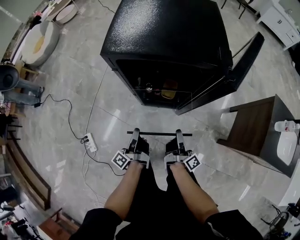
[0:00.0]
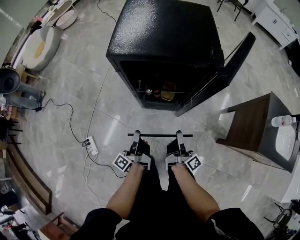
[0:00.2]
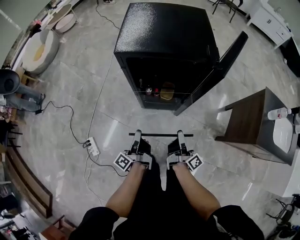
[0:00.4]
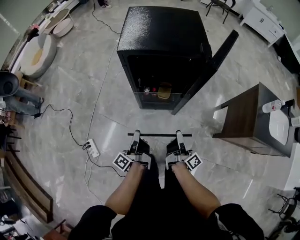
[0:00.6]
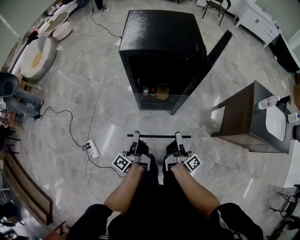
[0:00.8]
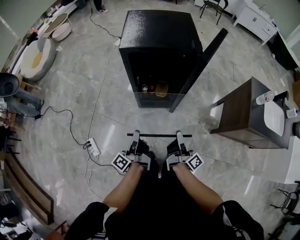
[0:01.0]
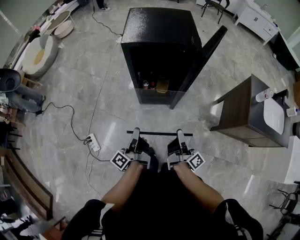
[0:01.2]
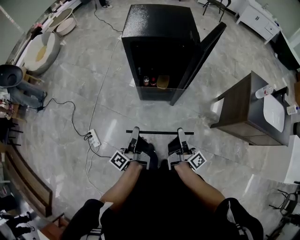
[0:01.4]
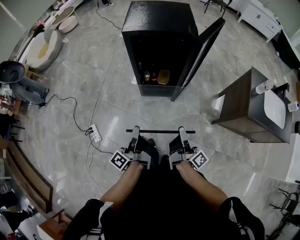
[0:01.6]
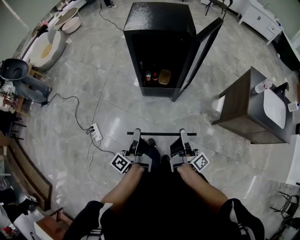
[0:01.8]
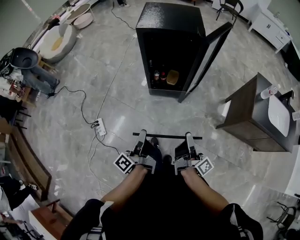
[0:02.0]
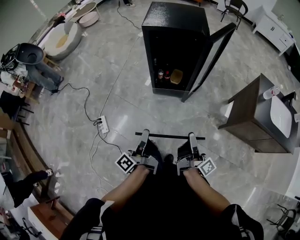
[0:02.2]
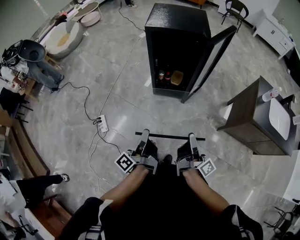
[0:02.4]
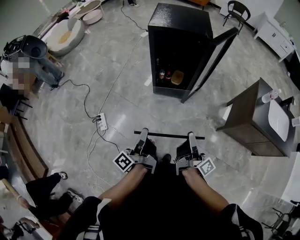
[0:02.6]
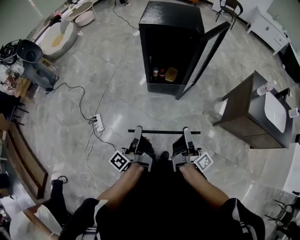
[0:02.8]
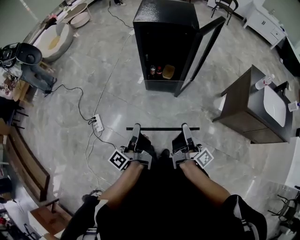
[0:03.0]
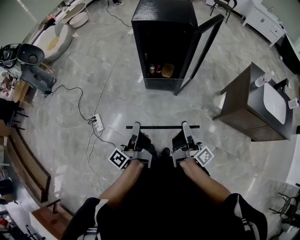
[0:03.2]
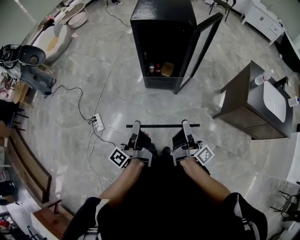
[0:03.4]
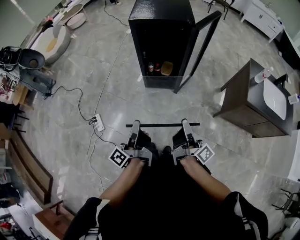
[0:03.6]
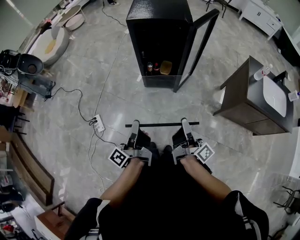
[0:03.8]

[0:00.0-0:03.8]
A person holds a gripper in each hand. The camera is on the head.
0:00.0 to 0:01.2: The two grippers go approximately 20 cm backward and upward.
0:01.2 to 0:02.6: Both grippers travel together backward and upward, roughly 20 cm.
0:02.6 to 0:03.8: Both grippers stay about where they are.

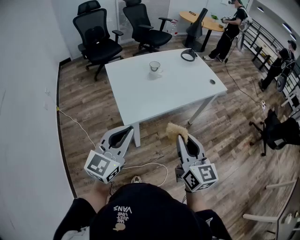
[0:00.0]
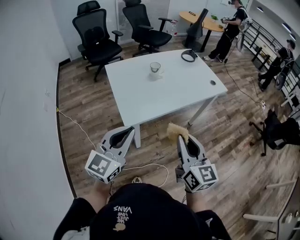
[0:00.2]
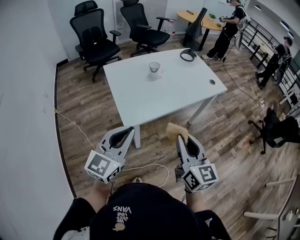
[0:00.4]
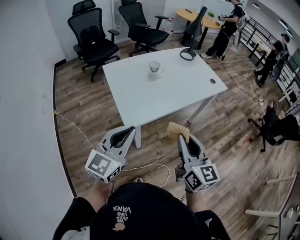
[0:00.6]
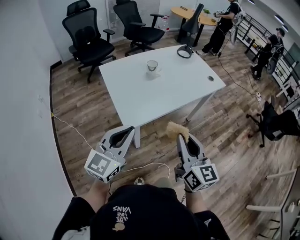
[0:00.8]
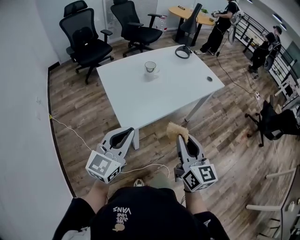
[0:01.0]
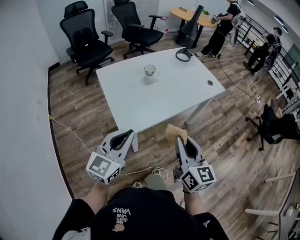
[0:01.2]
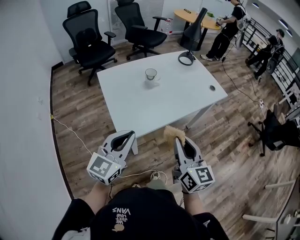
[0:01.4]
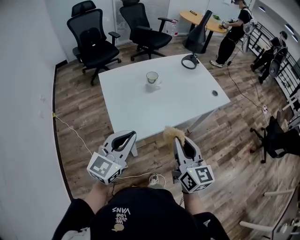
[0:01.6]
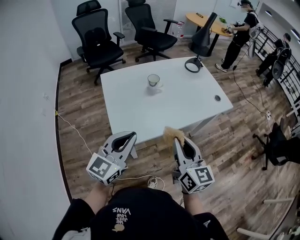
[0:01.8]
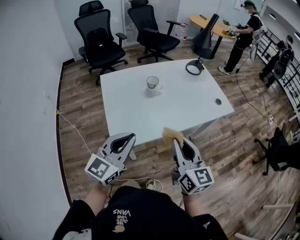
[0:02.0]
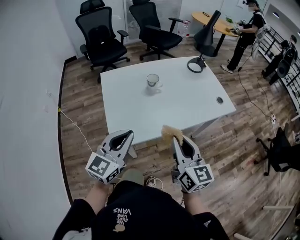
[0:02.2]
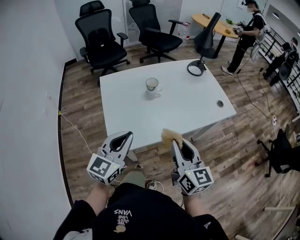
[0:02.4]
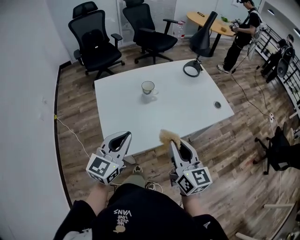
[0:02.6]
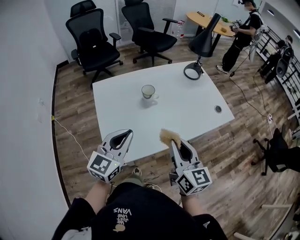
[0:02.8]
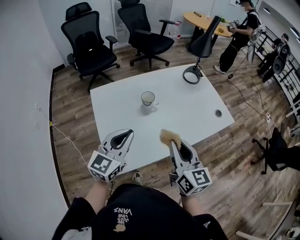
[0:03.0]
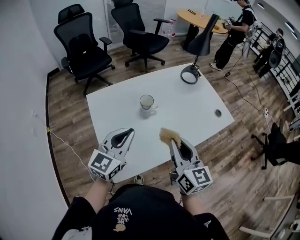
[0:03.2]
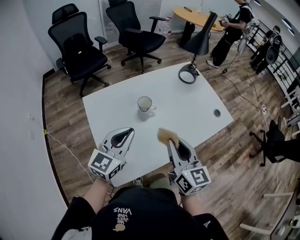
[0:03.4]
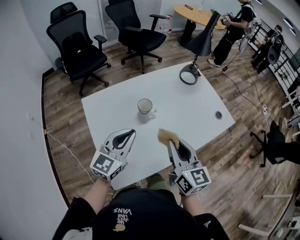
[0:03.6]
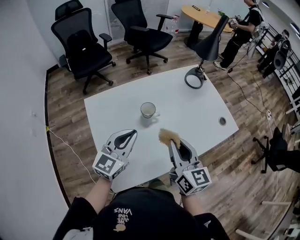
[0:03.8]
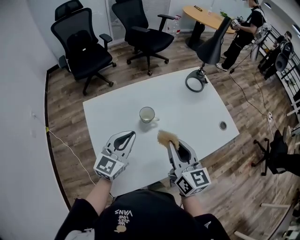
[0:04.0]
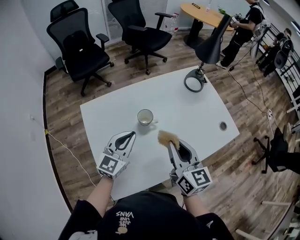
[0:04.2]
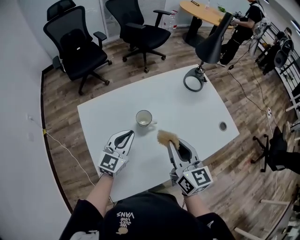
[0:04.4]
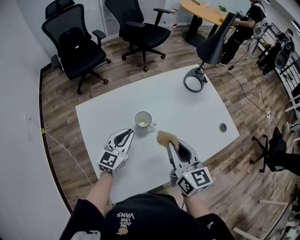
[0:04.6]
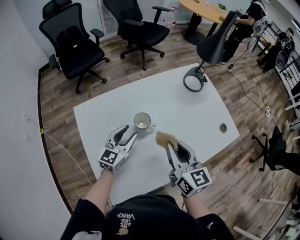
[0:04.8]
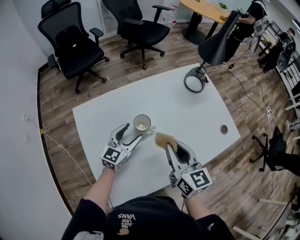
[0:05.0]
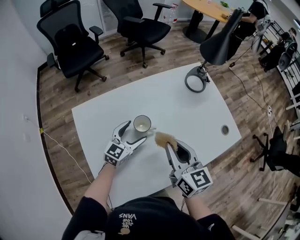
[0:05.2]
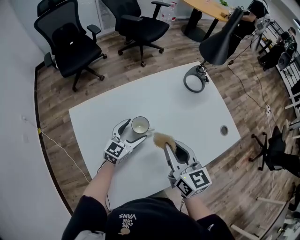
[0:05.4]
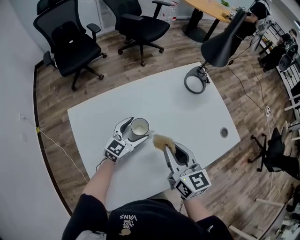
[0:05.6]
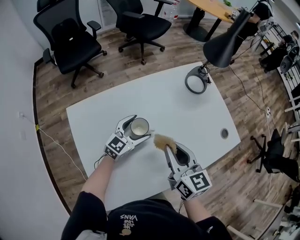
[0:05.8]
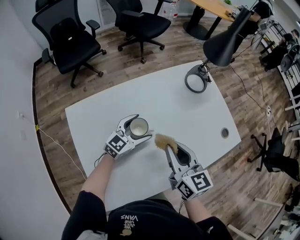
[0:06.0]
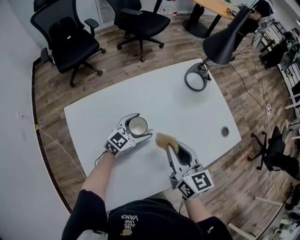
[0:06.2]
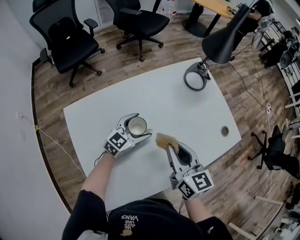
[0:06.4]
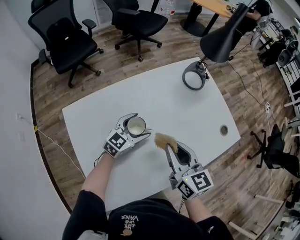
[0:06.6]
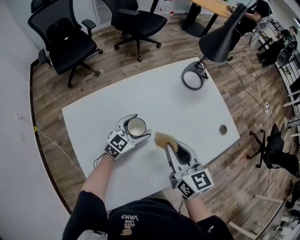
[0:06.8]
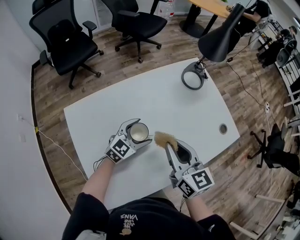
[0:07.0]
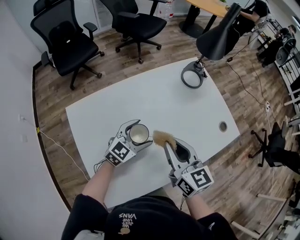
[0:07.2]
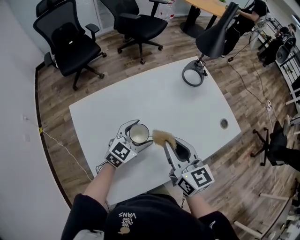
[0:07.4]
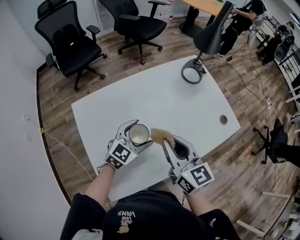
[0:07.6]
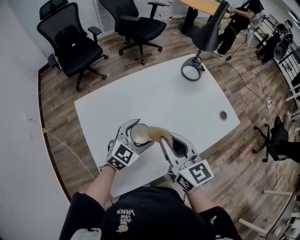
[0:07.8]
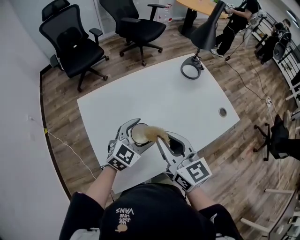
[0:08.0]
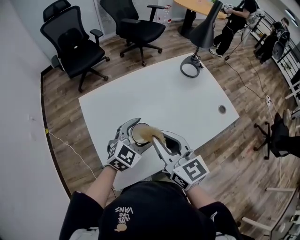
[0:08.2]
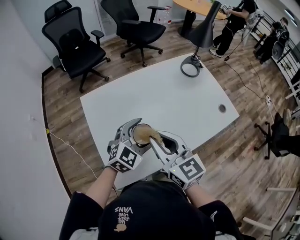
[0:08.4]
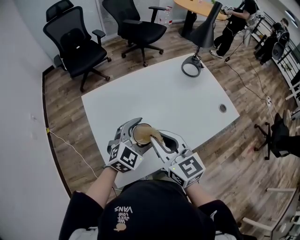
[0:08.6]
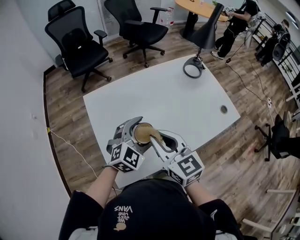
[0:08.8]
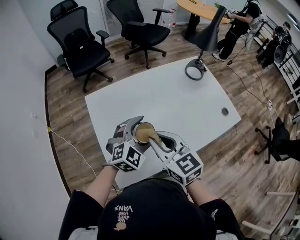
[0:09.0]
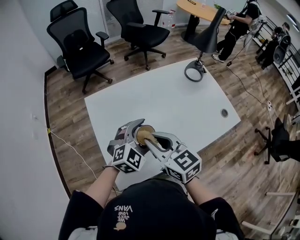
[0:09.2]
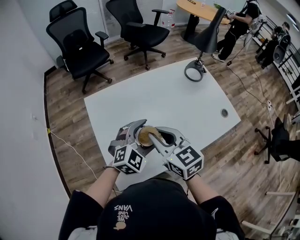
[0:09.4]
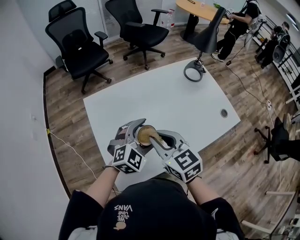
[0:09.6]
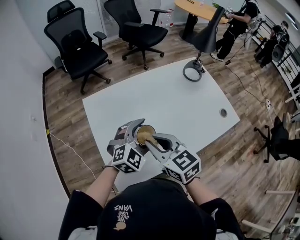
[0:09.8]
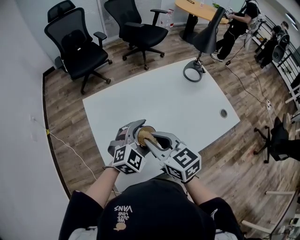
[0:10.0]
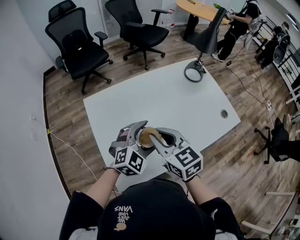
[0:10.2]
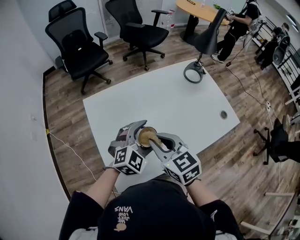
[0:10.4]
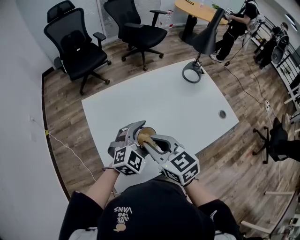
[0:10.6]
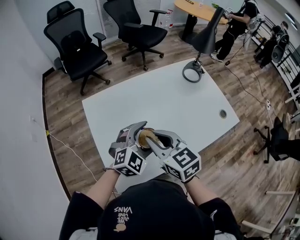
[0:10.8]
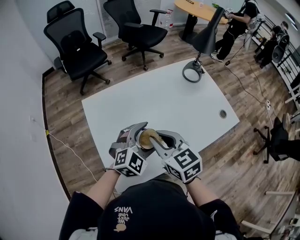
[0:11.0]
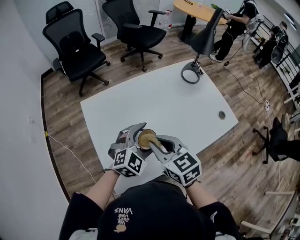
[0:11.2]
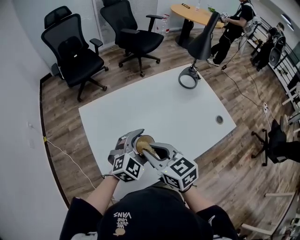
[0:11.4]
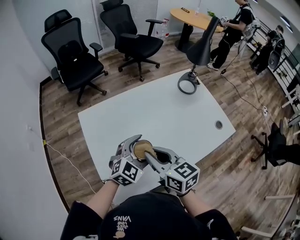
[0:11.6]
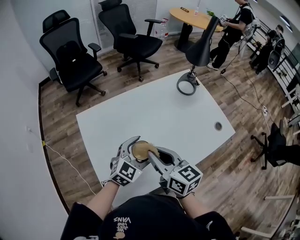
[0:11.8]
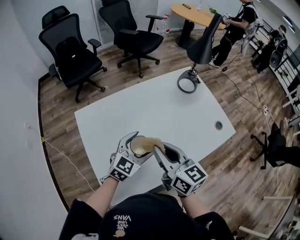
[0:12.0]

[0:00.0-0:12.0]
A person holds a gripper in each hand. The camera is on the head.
0:00.0 to 0:01.6: Both grippers travel together forward, roughly 15 cm.
0:01.6 to 0:03.0: The two grippers go about 20 cm forward.
0:03.0 to 0:04.4: The right gripper is displaced forward by some 15 cm; the left gripper travels forward and downward by approximately 20 cm.
0:04.4 to 0:06.0: The left gripper travels forward, downward and to the right by roughly 15 cm, turns by approximately 20 degrees, and opens its fingers. Meanwhile the right gripper heads forward, covering some 5 cm.
0:06.0 to 0:07.6: The left gripper travels backward and upward by roughly 10 cm, while the right gripper shifts approximately 5 cm backward.
0:07.6 to 0:09.0: The left gripper is displaced backward and upward by approximately 10 cm, and turns by approximately 20 degrees, while the right gripper moves to the left and backward, about 10 cm.
0:09.0 to 0:10.4: The grippers move only a little.
0:10.4 to 0:12.0: The left gripper ends up roughly 5 cm from where it was, and changes its angle by roughly 20 degrees. Meanwhile the right gripper heads to the right, covering some 5 cm, and turns by approximately 30 degrees.

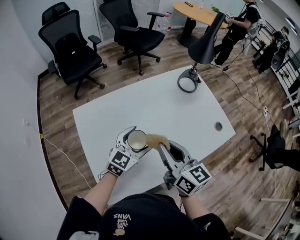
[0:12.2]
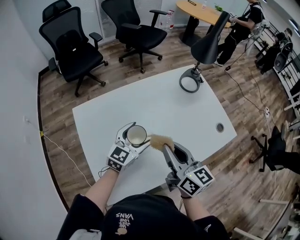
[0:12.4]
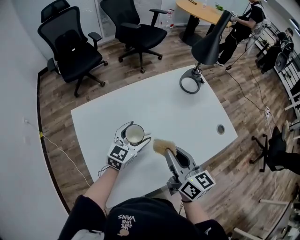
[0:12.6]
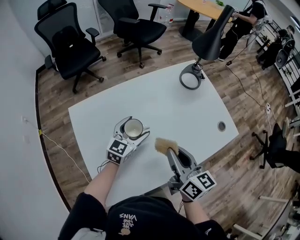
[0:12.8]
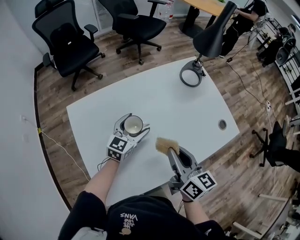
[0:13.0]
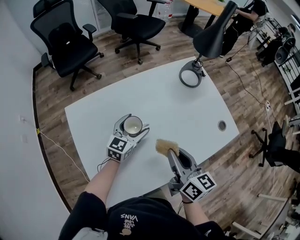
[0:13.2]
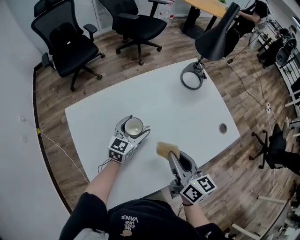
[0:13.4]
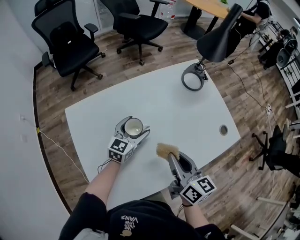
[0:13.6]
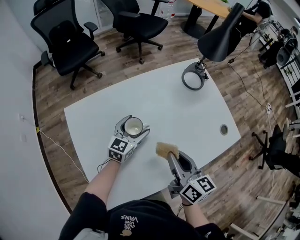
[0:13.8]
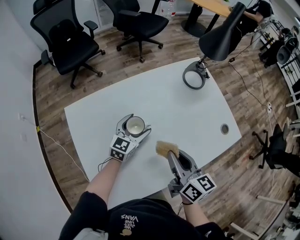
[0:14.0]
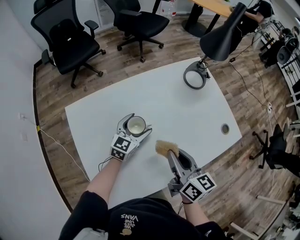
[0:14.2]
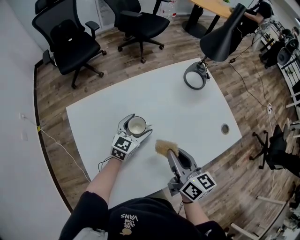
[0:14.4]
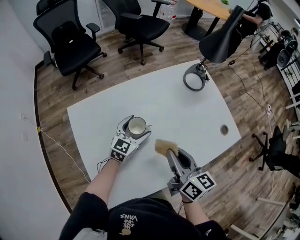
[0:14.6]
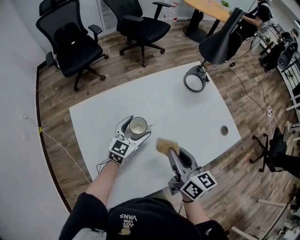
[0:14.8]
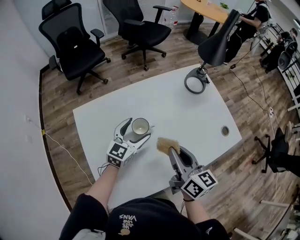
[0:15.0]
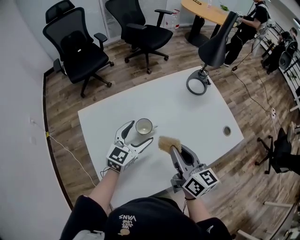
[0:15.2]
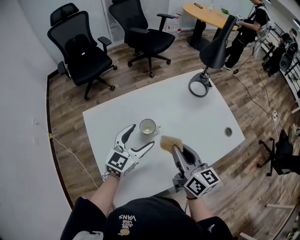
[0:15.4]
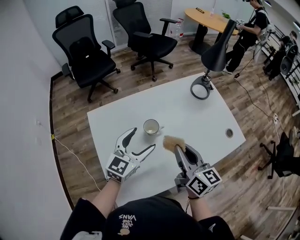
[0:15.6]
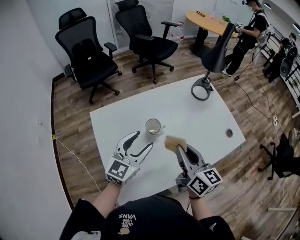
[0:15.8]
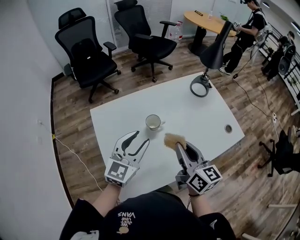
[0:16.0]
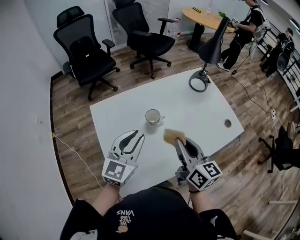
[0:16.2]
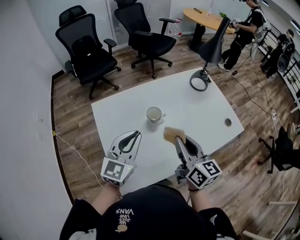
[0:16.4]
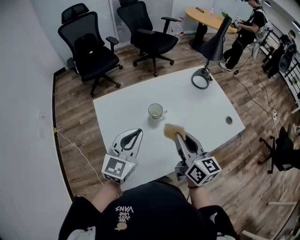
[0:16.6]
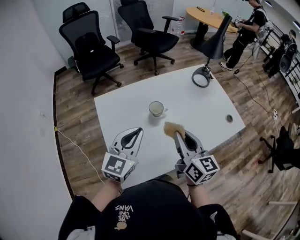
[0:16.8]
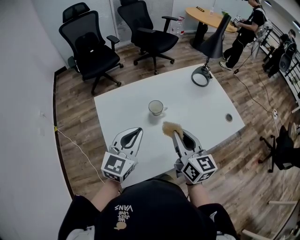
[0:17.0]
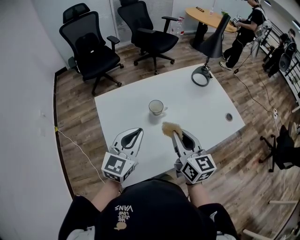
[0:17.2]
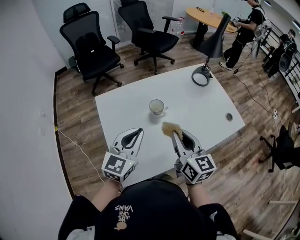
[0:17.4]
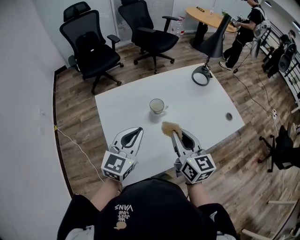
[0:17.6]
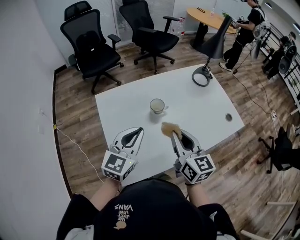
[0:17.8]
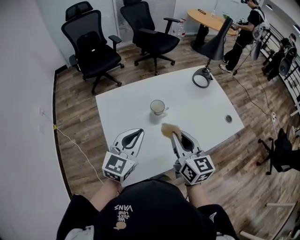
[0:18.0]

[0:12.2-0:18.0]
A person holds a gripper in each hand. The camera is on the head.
0:12.2 to 0:13.6: The right gripper travels downward by roughly 5 cm. Meanwhile the left gripper goes some 15 cm forward and downward.
0:13.6 to 0:15.0: The left gripper travels upward by approximately 5 cm.
0:15.0 to 0:16.6: The left gripper goes approximately 20 cm backward and upward, and closes up. Meanwhile the right gripper travels backward and upward by some 10 cm.
0:16.6 to 0:18.0: The grippers move only a little.

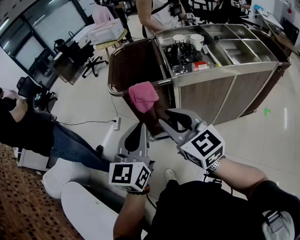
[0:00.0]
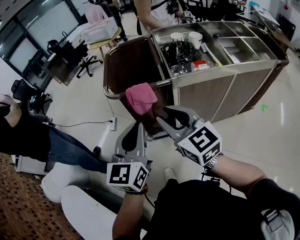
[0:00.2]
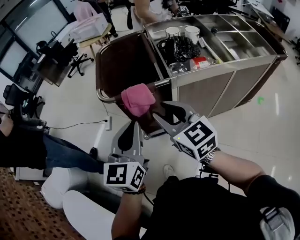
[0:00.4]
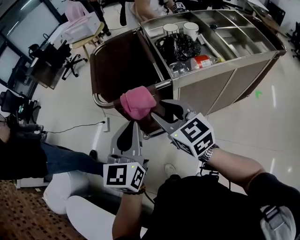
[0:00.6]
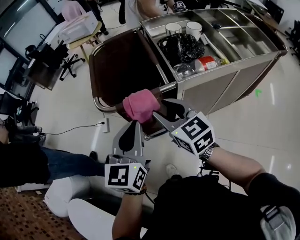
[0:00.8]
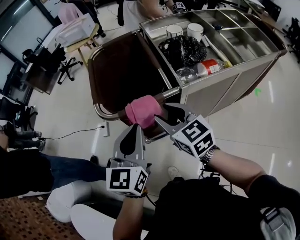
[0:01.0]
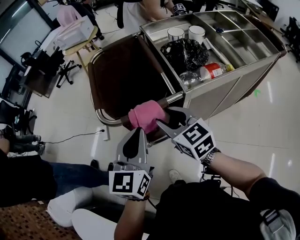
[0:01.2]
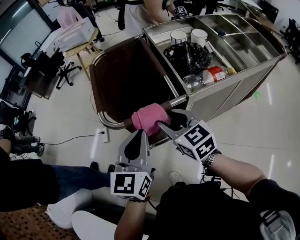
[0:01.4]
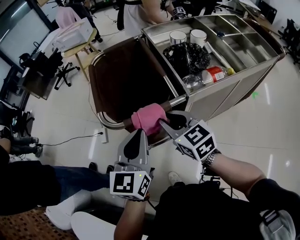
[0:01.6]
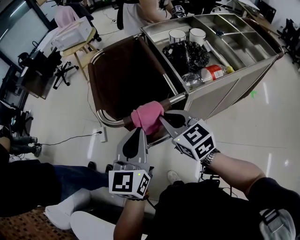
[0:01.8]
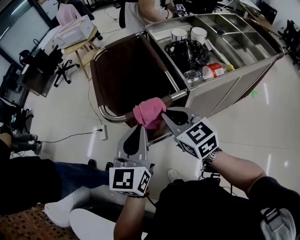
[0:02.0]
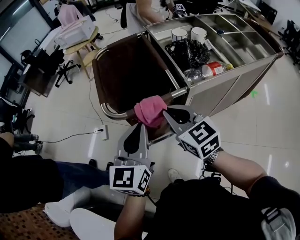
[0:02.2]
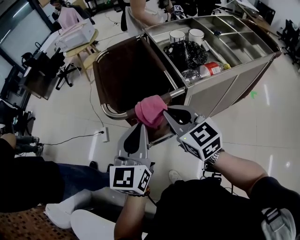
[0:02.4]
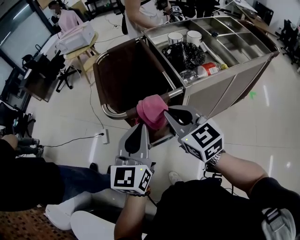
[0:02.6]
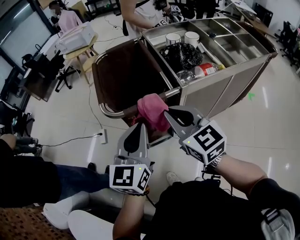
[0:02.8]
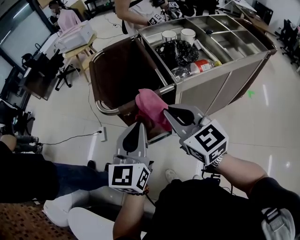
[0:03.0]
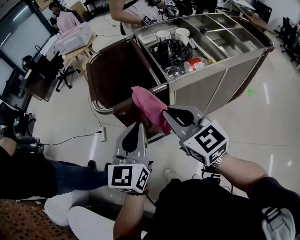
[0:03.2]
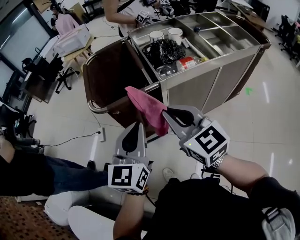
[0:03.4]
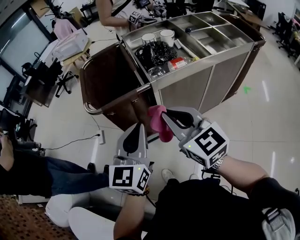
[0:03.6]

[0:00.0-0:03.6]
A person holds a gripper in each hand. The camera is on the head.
0:00.0 to 0:01.8: The right gripper shifts approximately 25 cm forward and downward, and changes its angle by some 20 degrees. The left gripper is displaced forward by roughly 20 cm.
0:01.8 to 0:03.6: The left gripper moves backward, to the right and upward, some 15 cm, while the right gripper travels backward, upward and to the right by roughly 25 cm.
